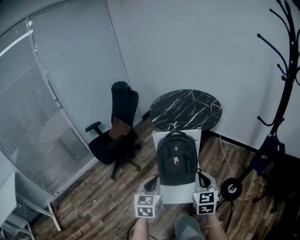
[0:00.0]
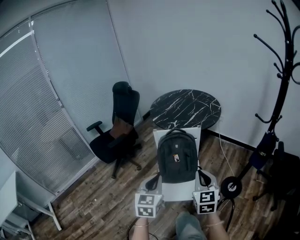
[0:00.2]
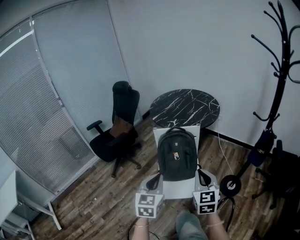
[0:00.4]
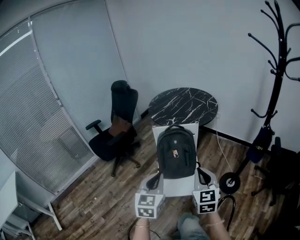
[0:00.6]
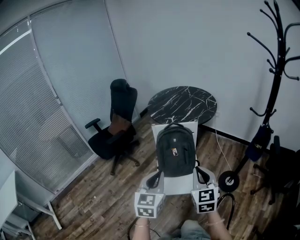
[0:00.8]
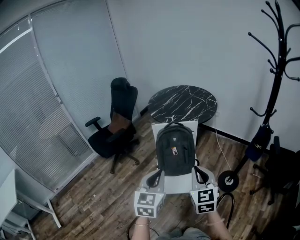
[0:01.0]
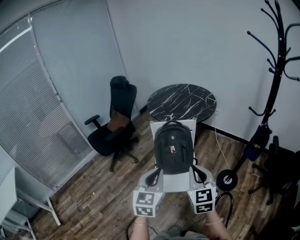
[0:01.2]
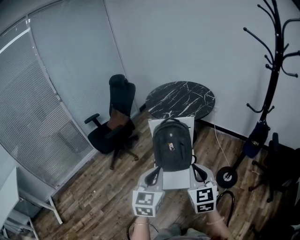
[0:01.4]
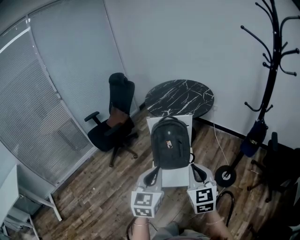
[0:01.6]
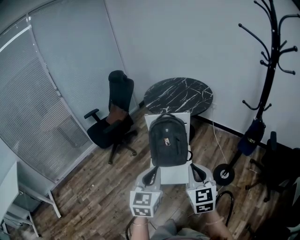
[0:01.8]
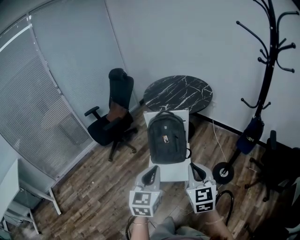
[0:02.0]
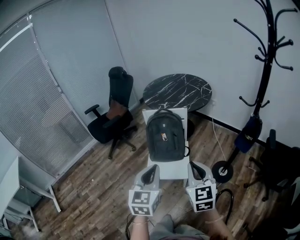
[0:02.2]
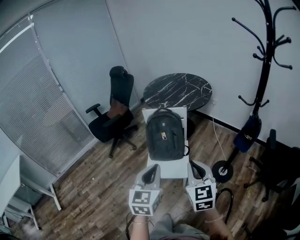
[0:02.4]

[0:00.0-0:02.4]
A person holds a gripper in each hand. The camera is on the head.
0:00.0 to 0:01.2: The two grippers go about 10 cm backward and upward.
0:01.2 to 0:02.4: Both grippers move to the right and backward, about 10 cm.

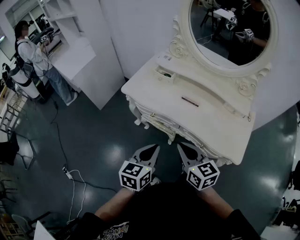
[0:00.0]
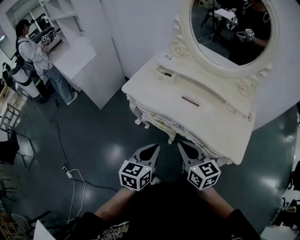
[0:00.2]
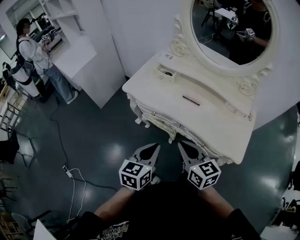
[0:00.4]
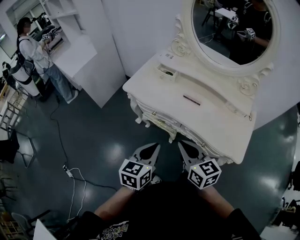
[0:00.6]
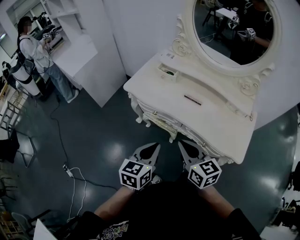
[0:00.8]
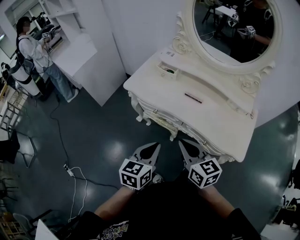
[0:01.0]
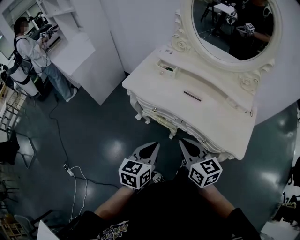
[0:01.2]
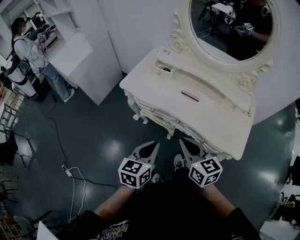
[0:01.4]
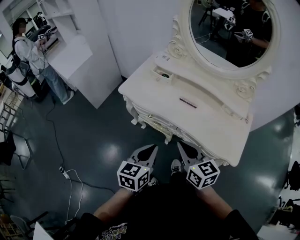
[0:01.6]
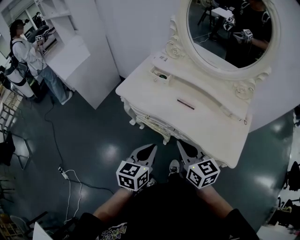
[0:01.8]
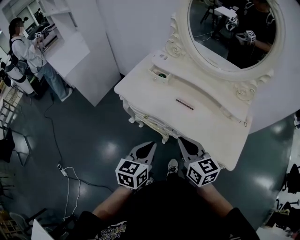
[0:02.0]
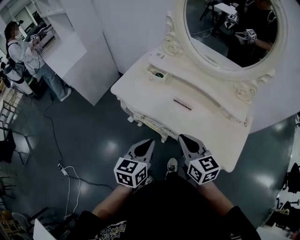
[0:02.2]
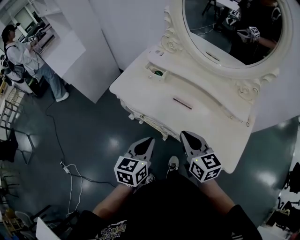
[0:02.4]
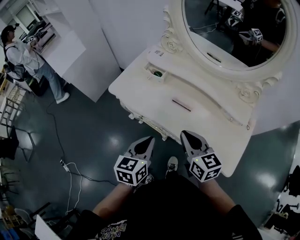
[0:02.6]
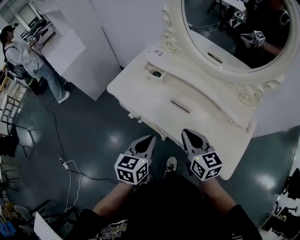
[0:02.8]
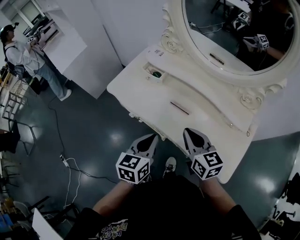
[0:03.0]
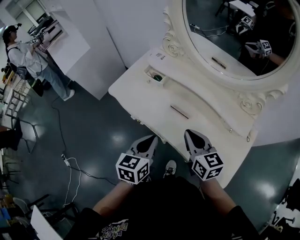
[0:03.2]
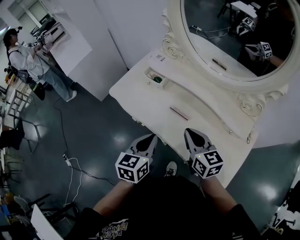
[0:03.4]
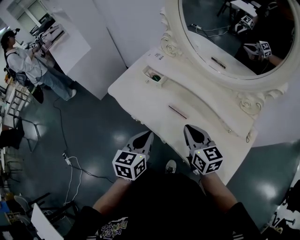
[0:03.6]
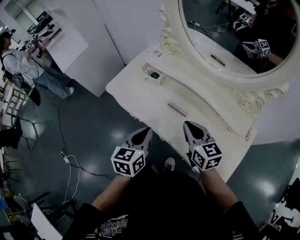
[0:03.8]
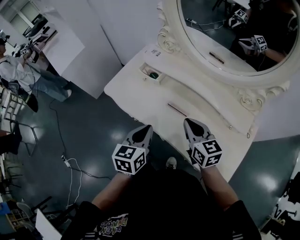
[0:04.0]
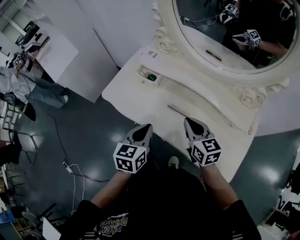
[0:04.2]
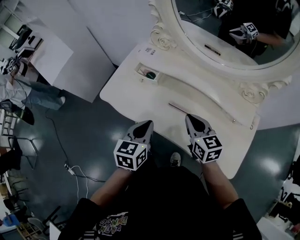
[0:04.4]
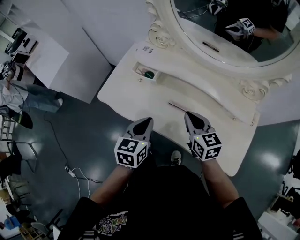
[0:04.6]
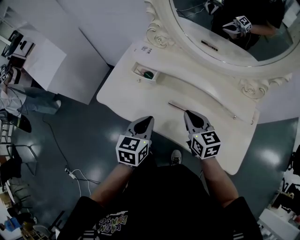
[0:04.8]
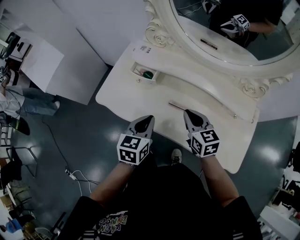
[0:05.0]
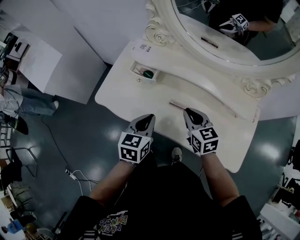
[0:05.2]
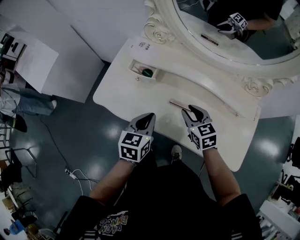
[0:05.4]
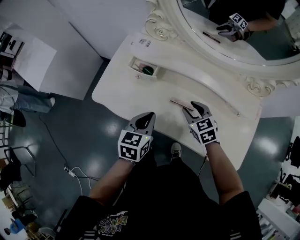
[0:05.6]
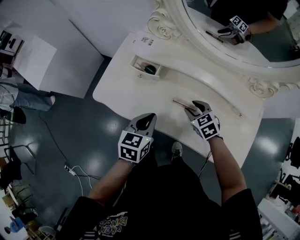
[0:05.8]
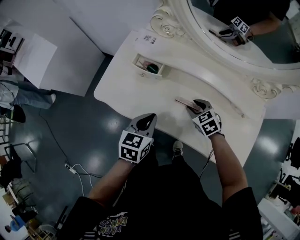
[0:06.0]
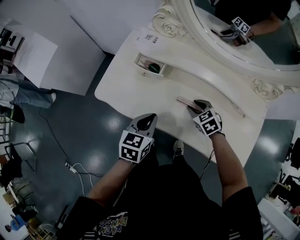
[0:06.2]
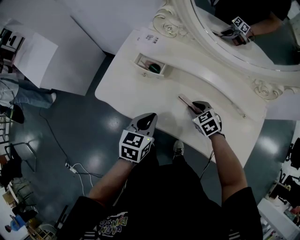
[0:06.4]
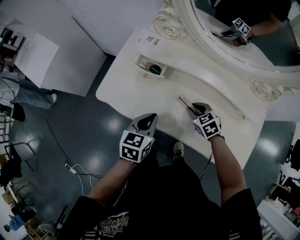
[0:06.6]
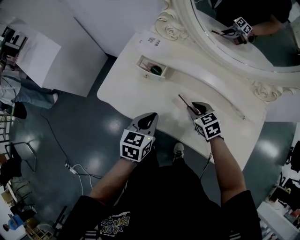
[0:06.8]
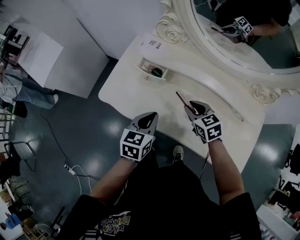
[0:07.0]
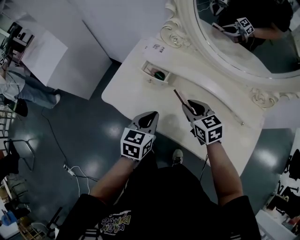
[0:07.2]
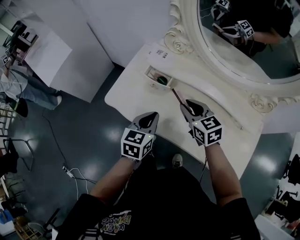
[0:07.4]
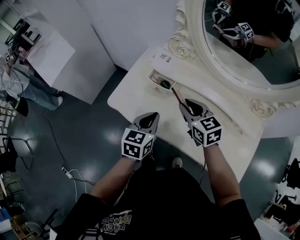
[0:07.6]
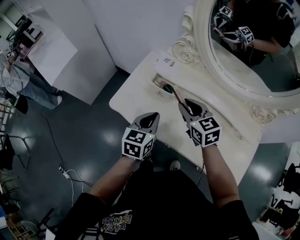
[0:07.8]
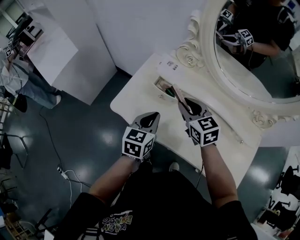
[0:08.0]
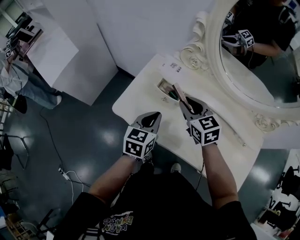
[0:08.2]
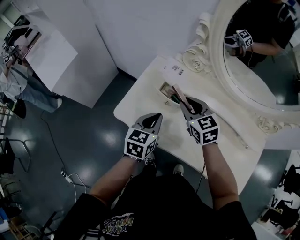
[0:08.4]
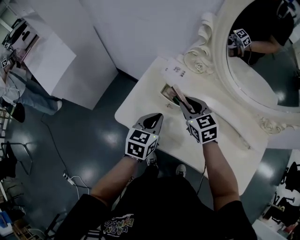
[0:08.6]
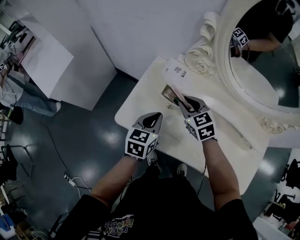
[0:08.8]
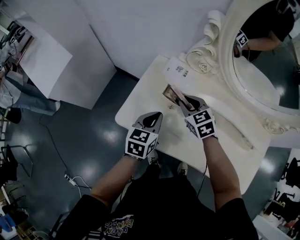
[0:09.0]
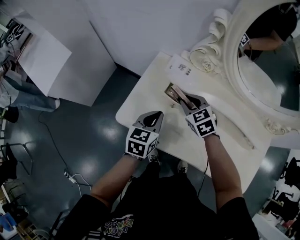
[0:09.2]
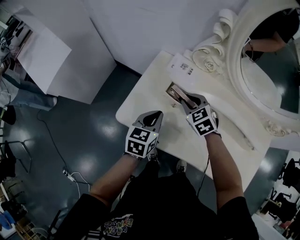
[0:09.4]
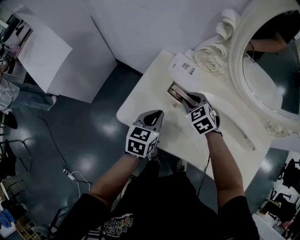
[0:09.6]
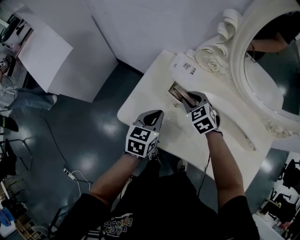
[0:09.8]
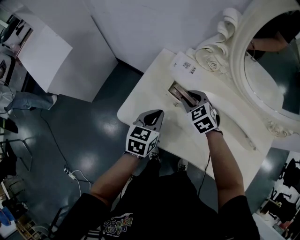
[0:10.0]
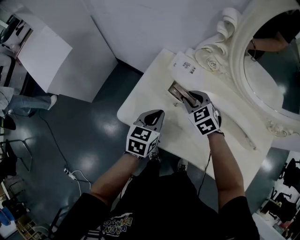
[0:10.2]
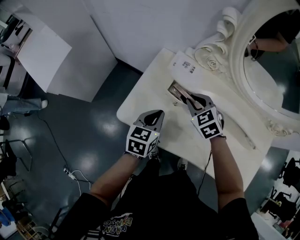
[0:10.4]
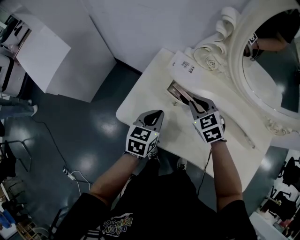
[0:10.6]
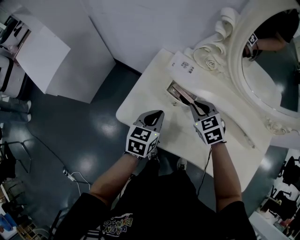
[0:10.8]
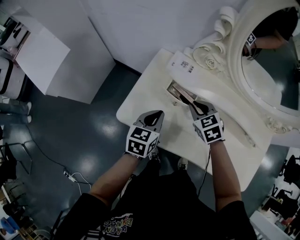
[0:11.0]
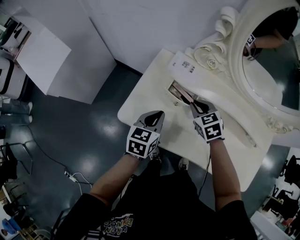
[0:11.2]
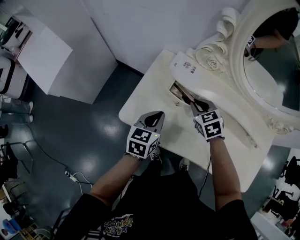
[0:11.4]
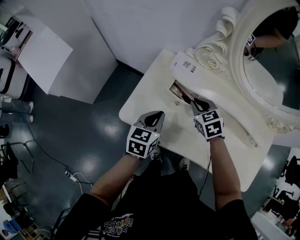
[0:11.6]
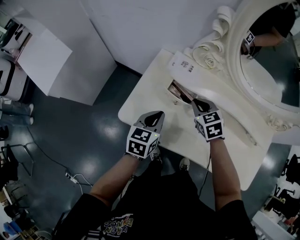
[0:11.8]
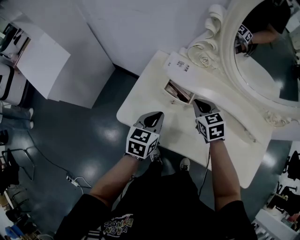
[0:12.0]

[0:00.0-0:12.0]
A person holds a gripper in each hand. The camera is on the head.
0:00.0 to 0:01.6: There are only small adjustments of the grippers.
0:01.6 to 0:03.0: Both grippers move forward and to the right, approximately 15 cm.
0:03.0 to 0:04.4: Both grippers travel together forward, about 10 cm.
0:04.4 to 0:06.0: The left gripper travels downward and forward by approximately 10 cm. Meanwhile the right gripper goes about 15 cm downward and forward, tilts its fingers roughly 30 degrees downward, and opens its fingers.
0:06.0 to 0:07.6: The left gripper shifts approximately 5 cm upward, while the right gripper moves upward and to the left, approximately 20 cm, and turns by roughly 30 degrees.
0:07.6 to 0:09.0: The left gripper shifts roughly 15 cm forward and to the left. The right gripper moves forward, downward and to the left, about 15 cm.
0:09.0 to 0:10.4: The grippers move only a little.
0:10.4 to 0:12.0: The right gripper changes place by approximately 5 cm.

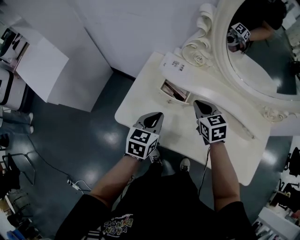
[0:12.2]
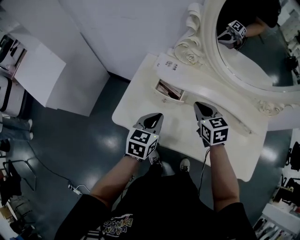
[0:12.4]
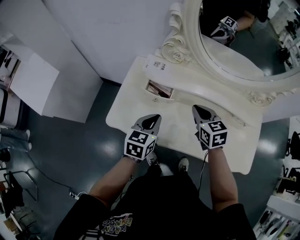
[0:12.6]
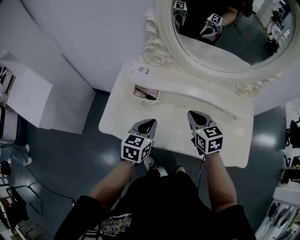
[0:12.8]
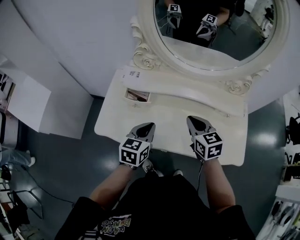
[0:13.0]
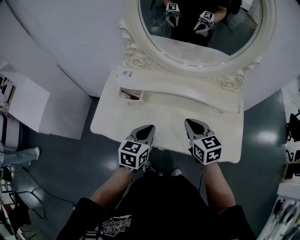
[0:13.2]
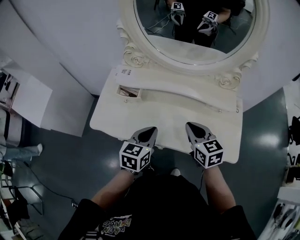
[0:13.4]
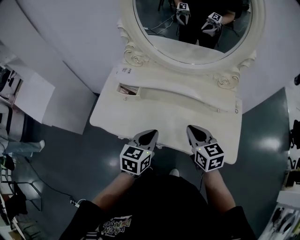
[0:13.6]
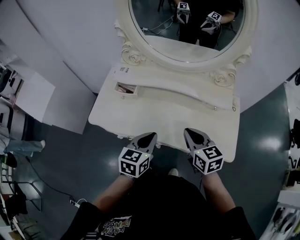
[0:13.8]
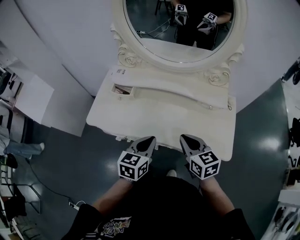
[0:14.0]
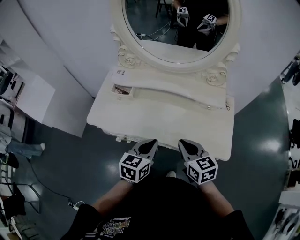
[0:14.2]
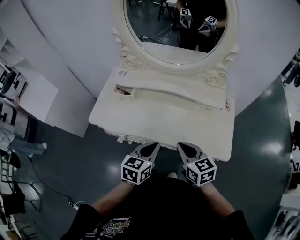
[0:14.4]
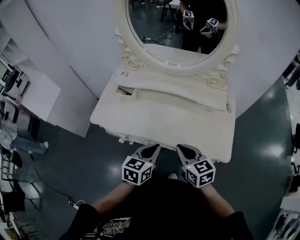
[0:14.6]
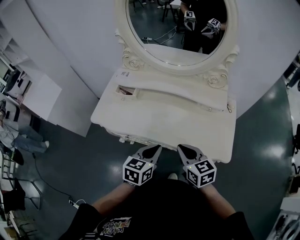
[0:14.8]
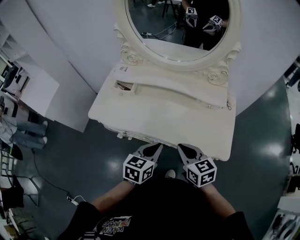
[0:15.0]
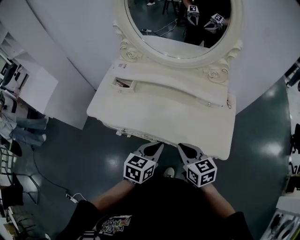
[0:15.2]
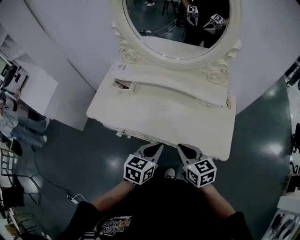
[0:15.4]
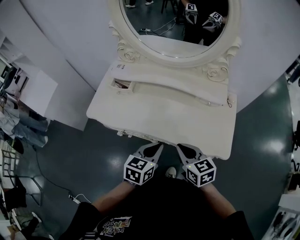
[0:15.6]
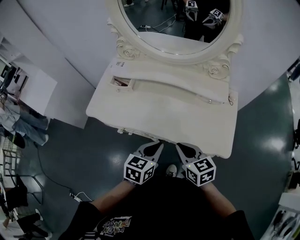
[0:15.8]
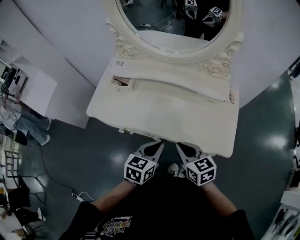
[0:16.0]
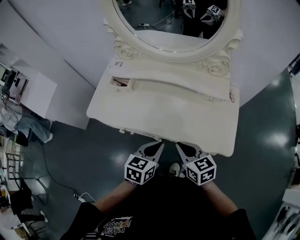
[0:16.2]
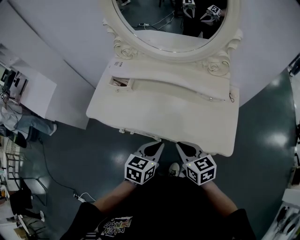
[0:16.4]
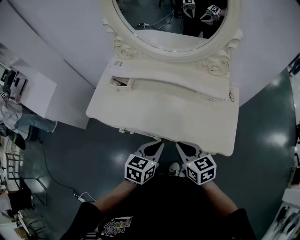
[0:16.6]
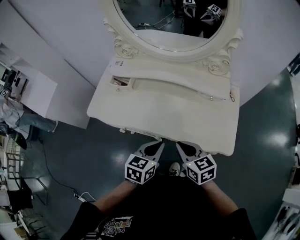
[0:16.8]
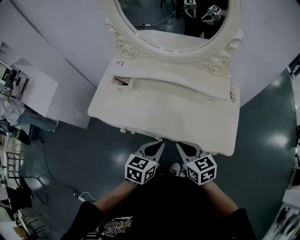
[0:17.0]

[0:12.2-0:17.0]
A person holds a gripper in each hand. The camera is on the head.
0:12.2 to 0:13.8: Both grippers move to the right and backward, approximately 30 cm. The right gripper rotates roughly 20 degrees.
0:13.8 to 0:15.4: The right gripper heads backward, covering roughly 10 cm; the left gripper moves to the right and backward, roughly 10 cm.
0:15.4 to 0:17.0: The grippers make only small movements.

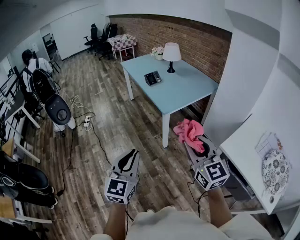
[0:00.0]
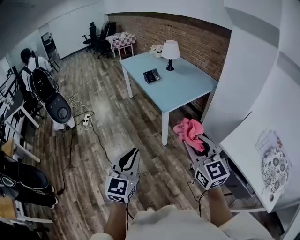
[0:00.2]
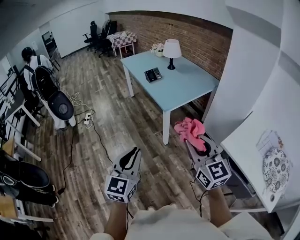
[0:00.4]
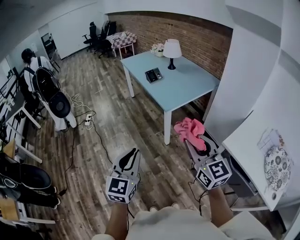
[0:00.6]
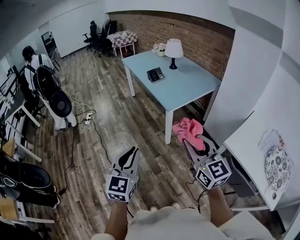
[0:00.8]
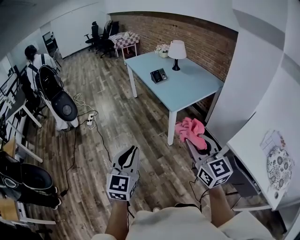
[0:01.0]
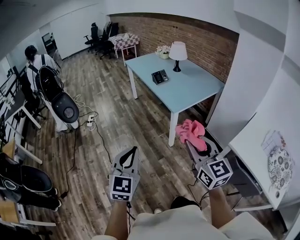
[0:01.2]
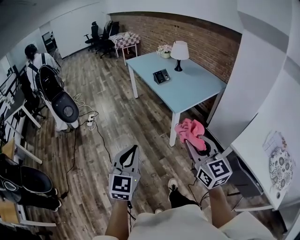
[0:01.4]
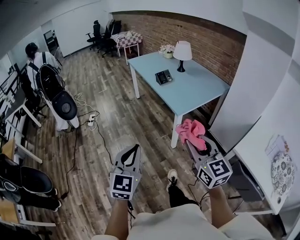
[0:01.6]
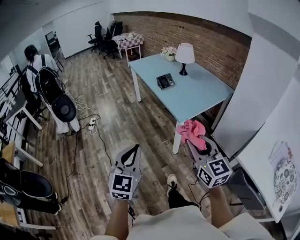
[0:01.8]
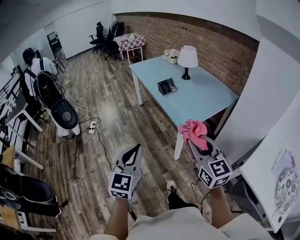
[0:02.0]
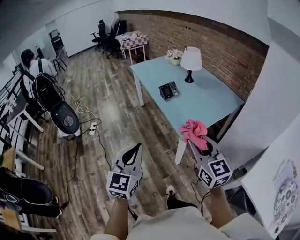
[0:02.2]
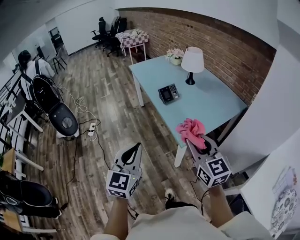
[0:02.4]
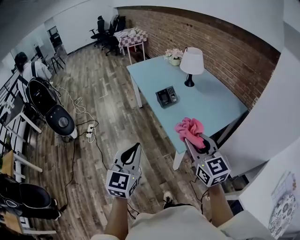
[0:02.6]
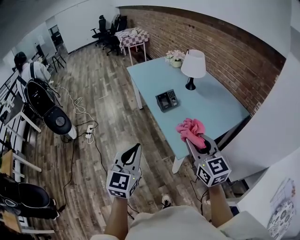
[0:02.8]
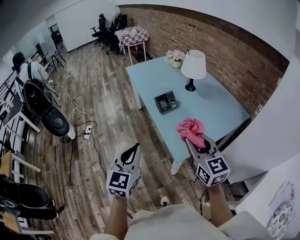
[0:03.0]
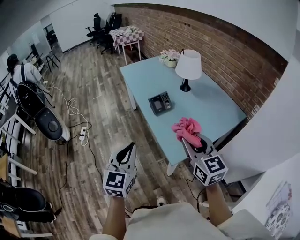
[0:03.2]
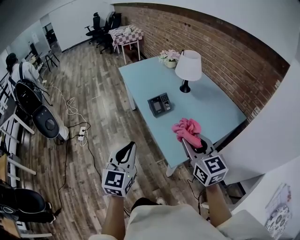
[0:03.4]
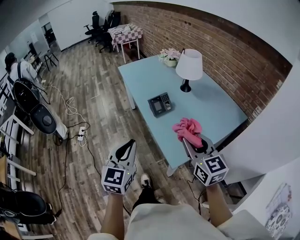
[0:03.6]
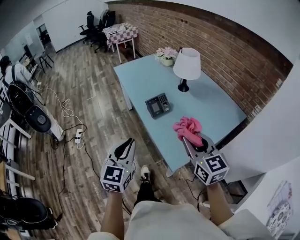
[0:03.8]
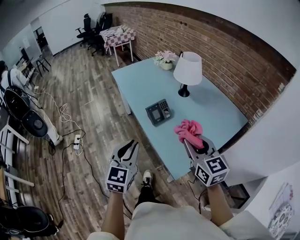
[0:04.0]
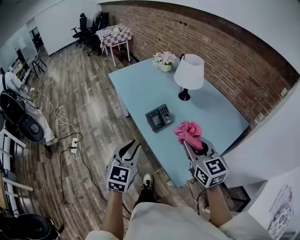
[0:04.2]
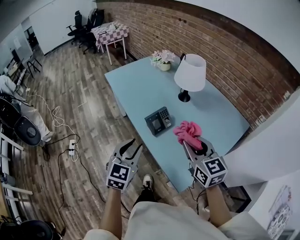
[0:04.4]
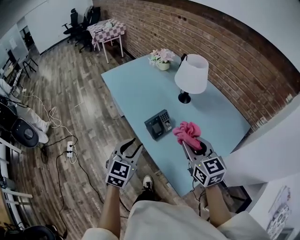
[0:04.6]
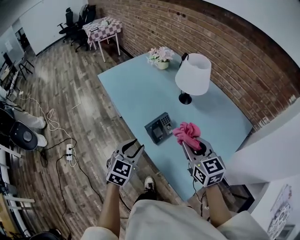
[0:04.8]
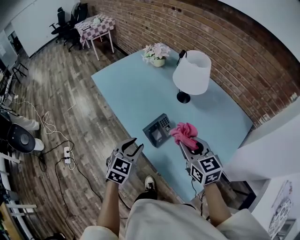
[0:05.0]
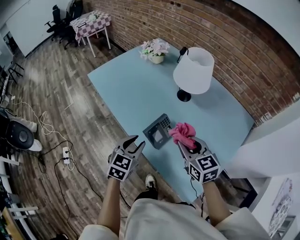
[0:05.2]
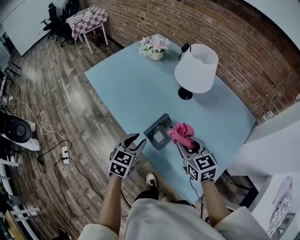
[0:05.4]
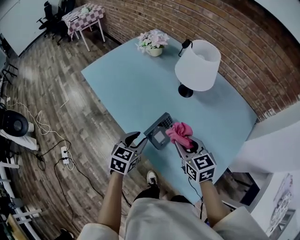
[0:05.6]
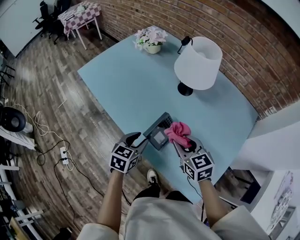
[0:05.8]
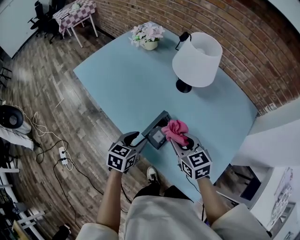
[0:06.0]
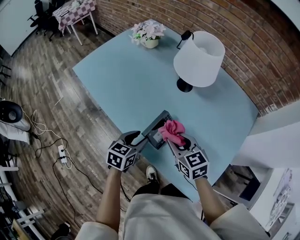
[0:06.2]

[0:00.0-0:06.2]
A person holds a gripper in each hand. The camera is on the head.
0:00.0 to 0:01.6: Both grippers travel together to the left and forward, about 10 cm.
0:01.6 to 0:03.2: Both grippers are carried forward, about 40 cm.
0:03.2 to 0:04.6: The two grippers go about 25 cm forward. The left gripper swivels approximately 20 degrees, and opens its fingers.
0:04.6 to 0:06.2: The left gripper heads forward and downward, covering approximately 25 cm, and changes its angle by about 40 degrees; the right gripper goes some 20 cm downward, forward and to the left.
